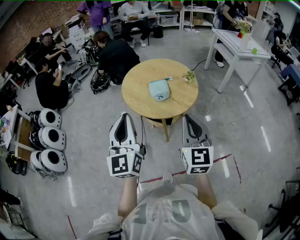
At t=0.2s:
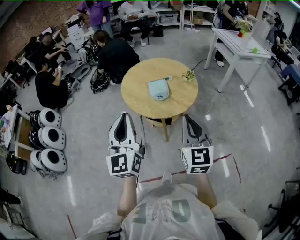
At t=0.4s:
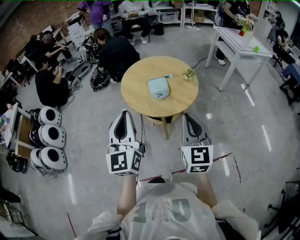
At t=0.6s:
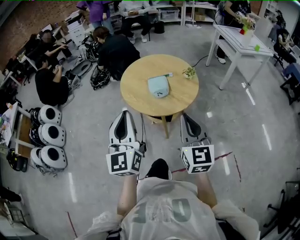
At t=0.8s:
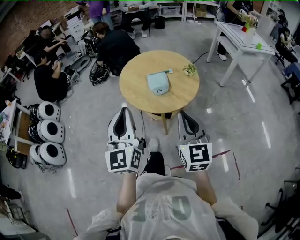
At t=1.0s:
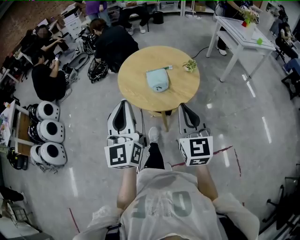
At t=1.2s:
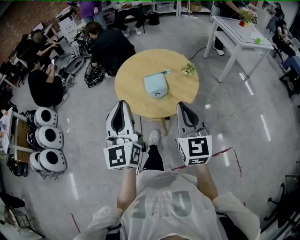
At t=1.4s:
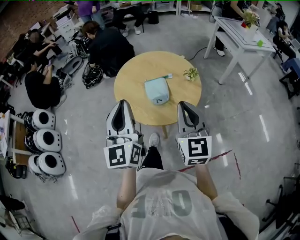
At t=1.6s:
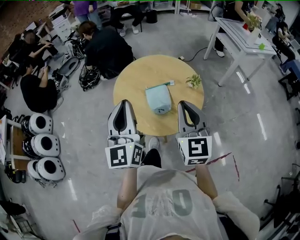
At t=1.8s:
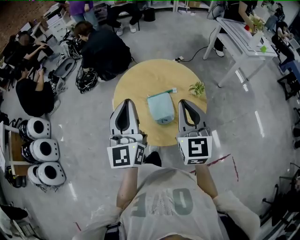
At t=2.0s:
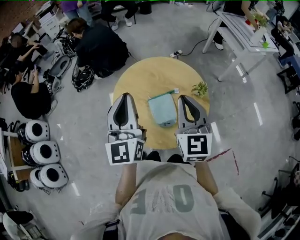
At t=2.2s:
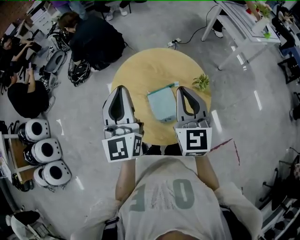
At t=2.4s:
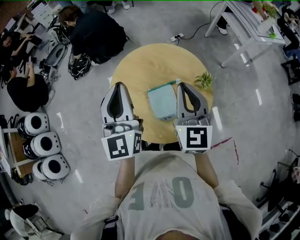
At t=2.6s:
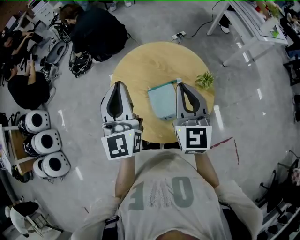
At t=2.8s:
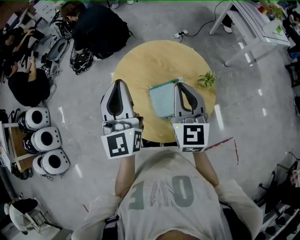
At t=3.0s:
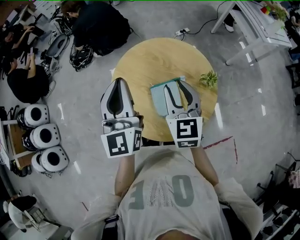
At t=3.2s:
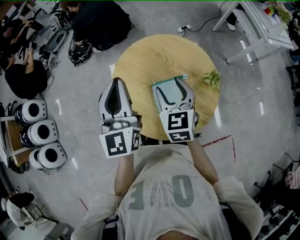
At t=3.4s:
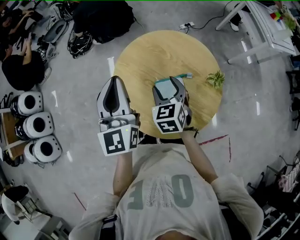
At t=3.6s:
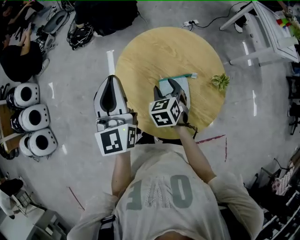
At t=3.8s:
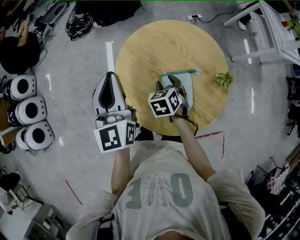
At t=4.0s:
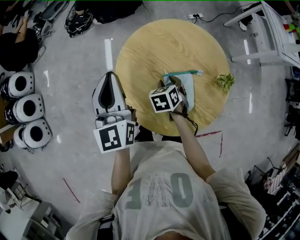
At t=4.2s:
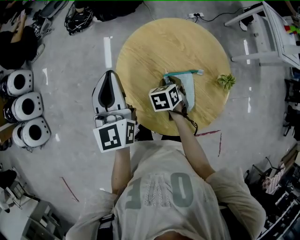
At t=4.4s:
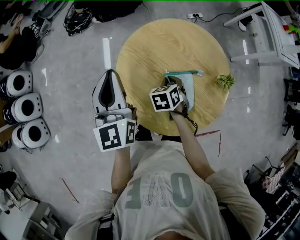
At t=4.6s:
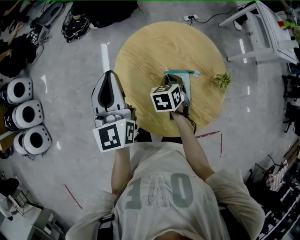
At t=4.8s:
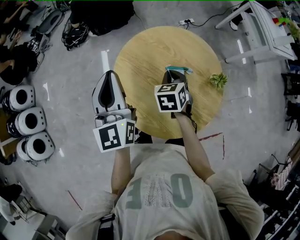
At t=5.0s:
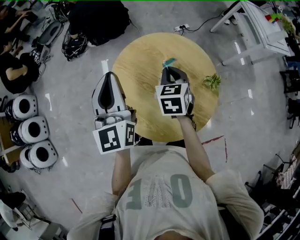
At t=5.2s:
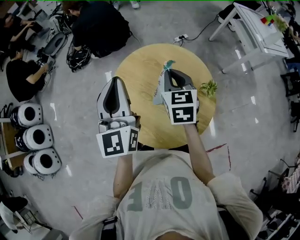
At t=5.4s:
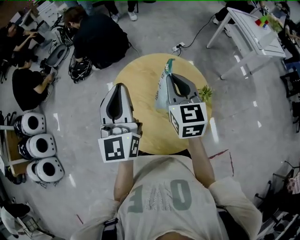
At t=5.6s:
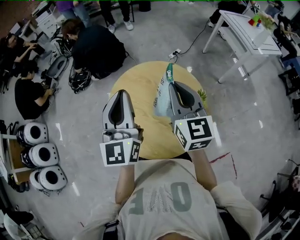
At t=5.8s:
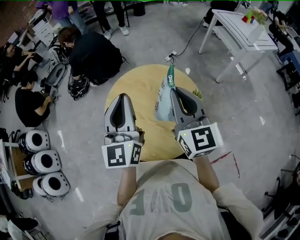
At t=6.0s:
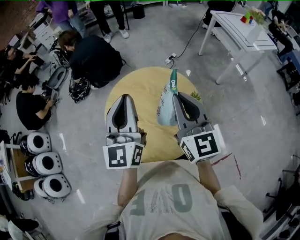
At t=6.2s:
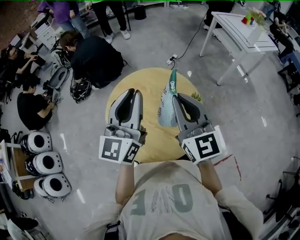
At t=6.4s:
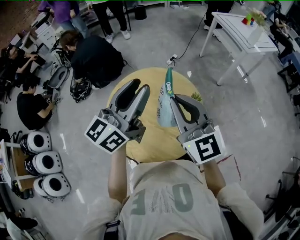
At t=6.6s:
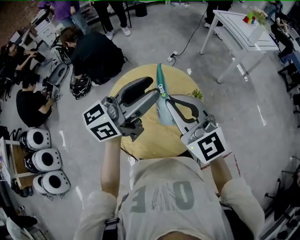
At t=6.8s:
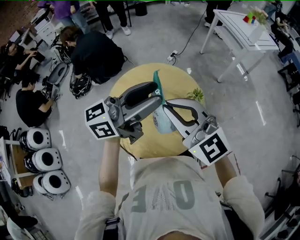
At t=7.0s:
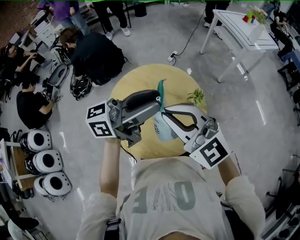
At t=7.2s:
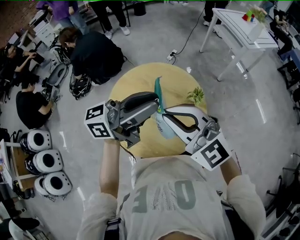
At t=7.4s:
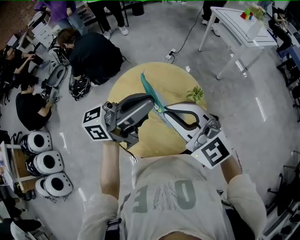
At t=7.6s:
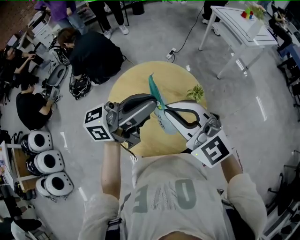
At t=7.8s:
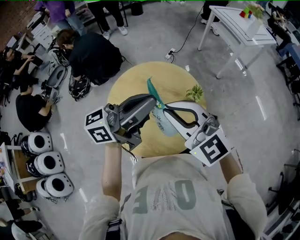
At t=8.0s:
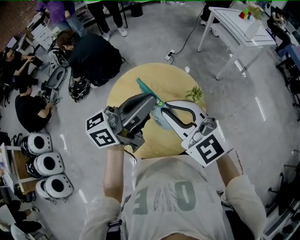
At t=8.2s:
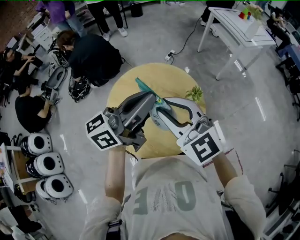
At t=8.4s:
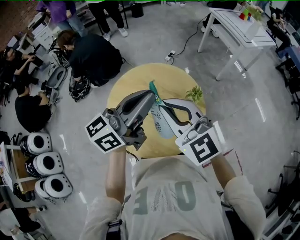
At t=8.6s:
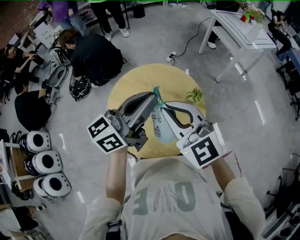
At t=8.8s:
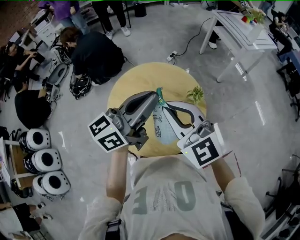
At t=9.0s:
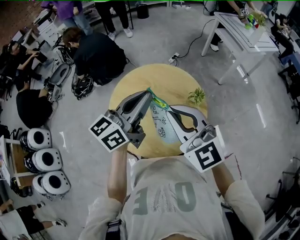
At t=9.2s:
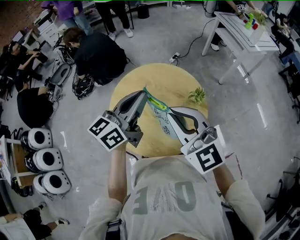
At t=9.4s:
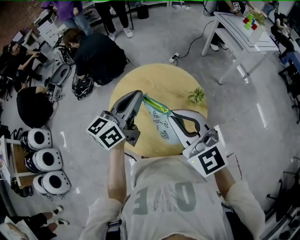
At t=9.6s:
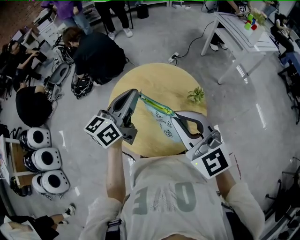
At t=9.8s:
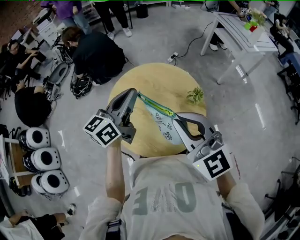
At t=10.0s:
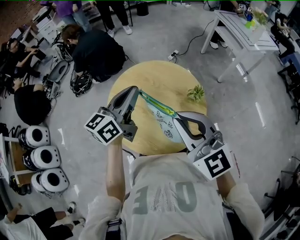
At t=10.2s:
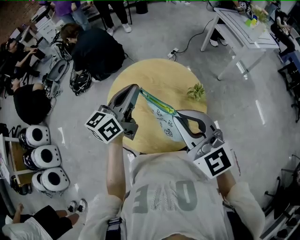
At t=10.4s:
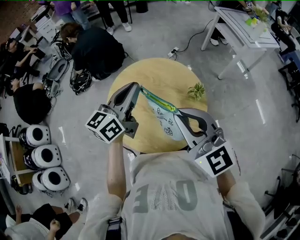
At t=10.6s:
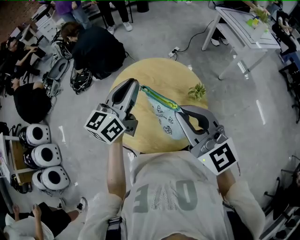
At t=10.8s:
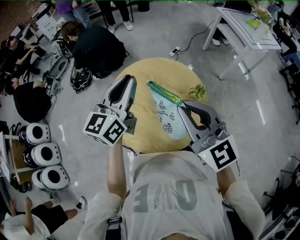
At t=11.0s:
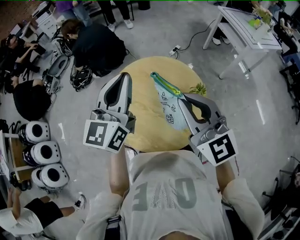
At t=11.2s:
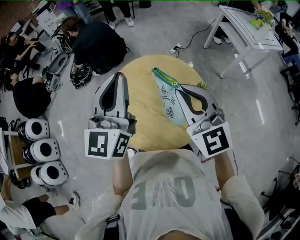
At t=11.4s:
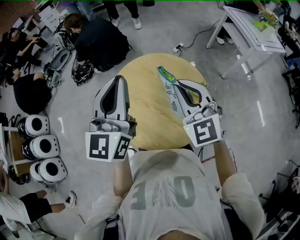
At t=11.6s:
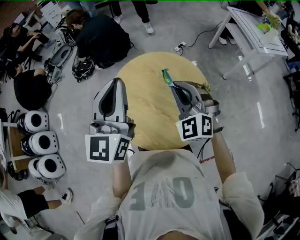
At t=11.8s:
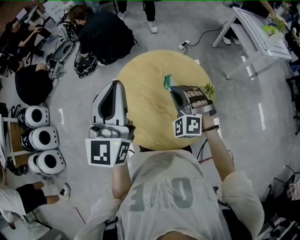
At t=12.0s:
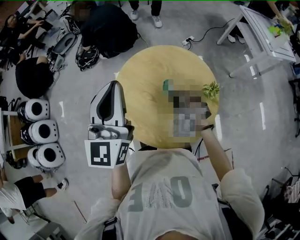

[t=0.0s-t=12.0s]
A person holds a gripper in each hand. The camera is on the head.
t=0.0s to t=1.6s: Both grippers travel together forward, about 25 cm.
t=1.6s to t=3.0s: The grippers both shift forward by roughly 20 cm. The right gripper opens up.
t=3.0s to t=4.4s: The left gripper travels to the left and downward by about 15 cm. The right gripper moves downward, approximately 25 cm, tilts its fingers approximately 40 degrees downward, and opens, then closes again.
t=4.4s to t=6.0s: The right gripper is displaced upward and to the right by approximately 40 cm, and tilts its fingers approximately 60 degrees upward. The left gripper is displaced to the right and upward by some 25 cm, and turns by approximately 30 degrees.
t=6.0s to t=7.6s: The left gripper moves to the right, about 5 cm, turns by about 80 degrees, and opens, then closes once more, while the right gripper is displaced backward by some 5 cm, and turns by roughly 40 degrees.
t=7.6s to t=9.0s: The left gripper changes place by some 5 cm, and swivels approximately 30 degrees.
t=9.0s to t=10.4s: The left gripper moves roughly 5 cm.
t=10.4s to t=12.0s: The right gripper travels downward and forward by about 25 cm, and angles its fingers downward, by about 40 degrees; the left gripper is displaced to the left and upward by roughly 10 cm, and changes its angle by about 40 degrees.

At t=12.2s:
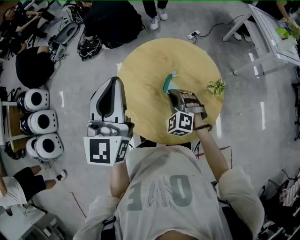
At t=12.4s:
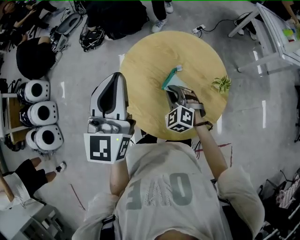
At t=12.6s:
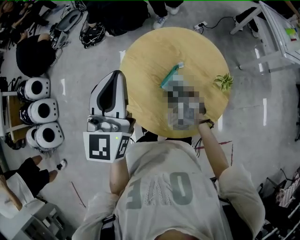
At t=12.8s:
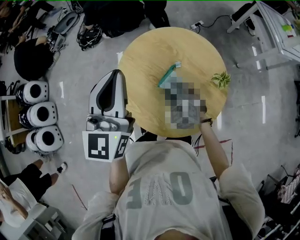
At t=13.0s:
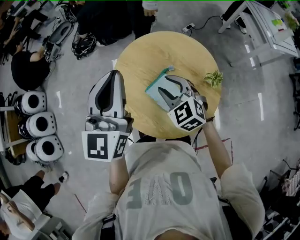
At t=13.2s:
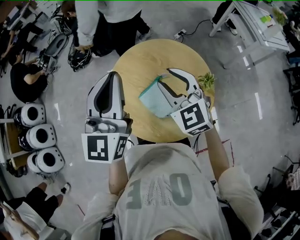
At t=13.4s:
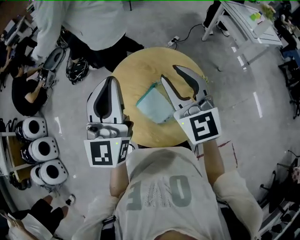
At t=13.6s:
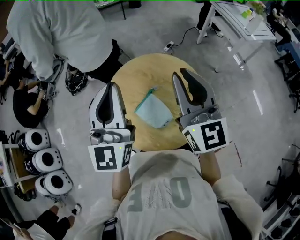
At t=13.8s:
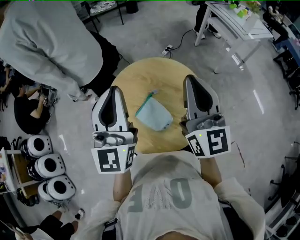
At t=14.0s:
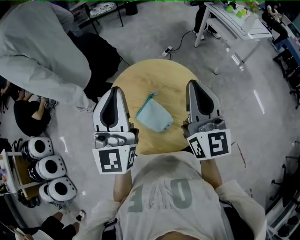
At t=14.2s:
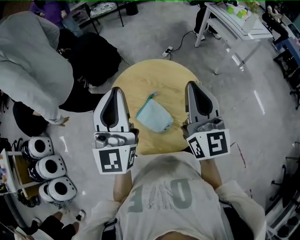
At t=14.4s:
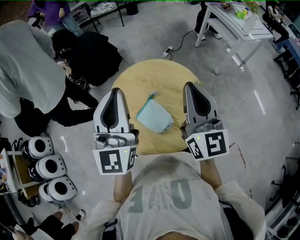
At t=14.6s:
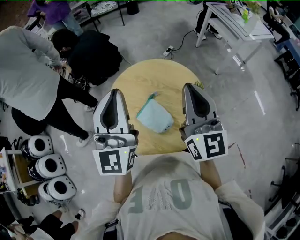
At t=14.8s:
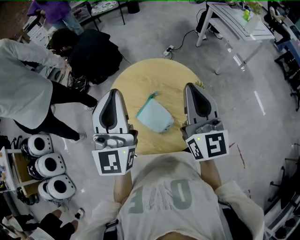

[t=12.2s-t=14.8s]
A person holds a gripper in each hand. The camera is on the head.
t=12.2s to t=13.4s: The left gripper shifts by some 5 cm. The right gripper goes about 30 cm upward, angles its fingers upward, by roughly 40 degrees, and opens up.
t=13.4s to t=14.8s: The right gripper goes roughly 10 cm to the right, rotates approximately 30 degrees, and closes up.

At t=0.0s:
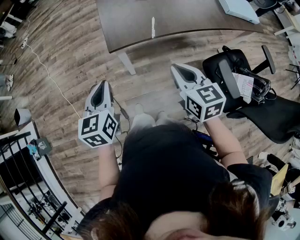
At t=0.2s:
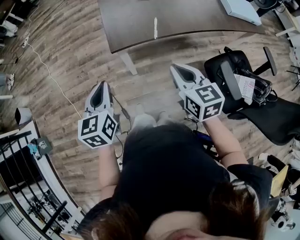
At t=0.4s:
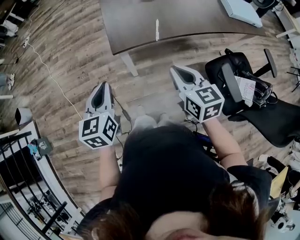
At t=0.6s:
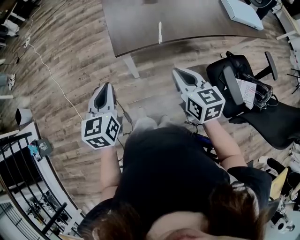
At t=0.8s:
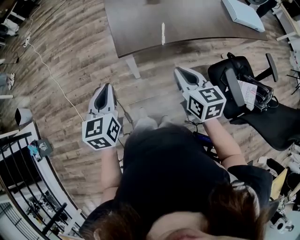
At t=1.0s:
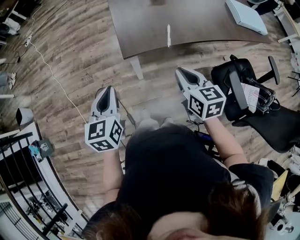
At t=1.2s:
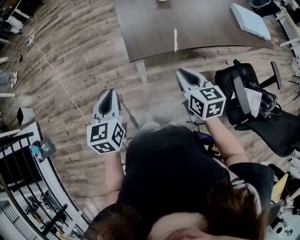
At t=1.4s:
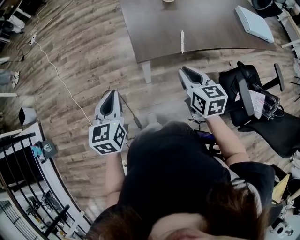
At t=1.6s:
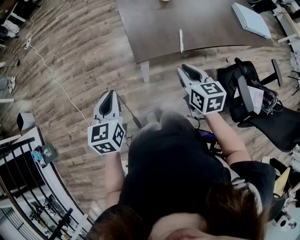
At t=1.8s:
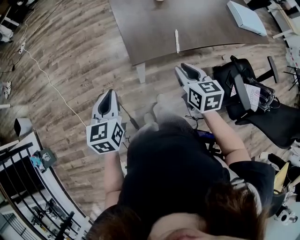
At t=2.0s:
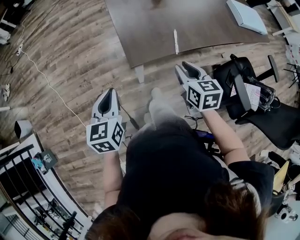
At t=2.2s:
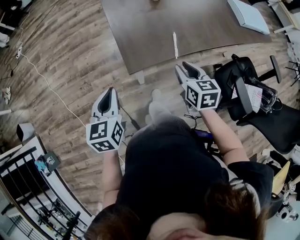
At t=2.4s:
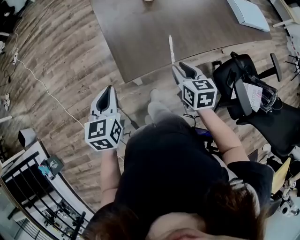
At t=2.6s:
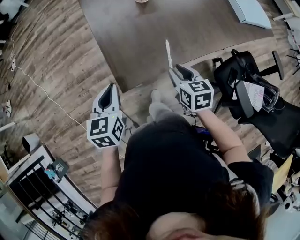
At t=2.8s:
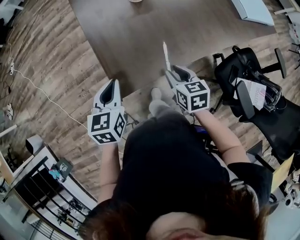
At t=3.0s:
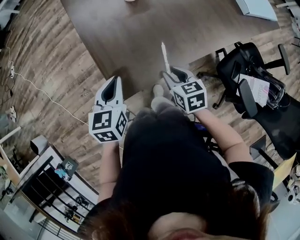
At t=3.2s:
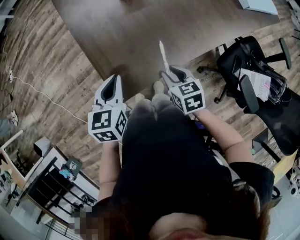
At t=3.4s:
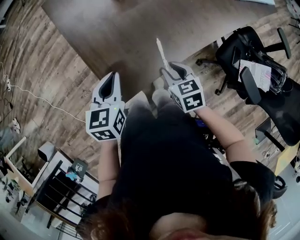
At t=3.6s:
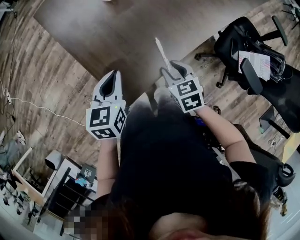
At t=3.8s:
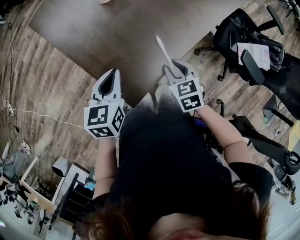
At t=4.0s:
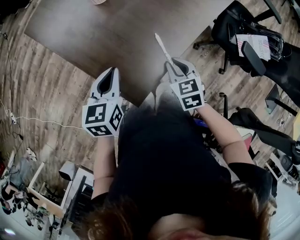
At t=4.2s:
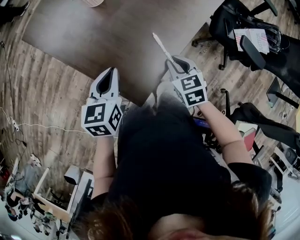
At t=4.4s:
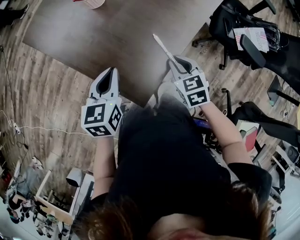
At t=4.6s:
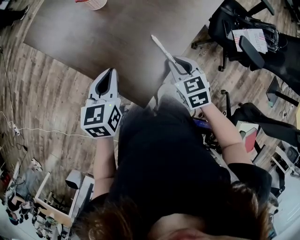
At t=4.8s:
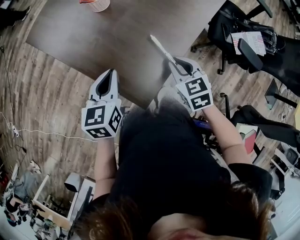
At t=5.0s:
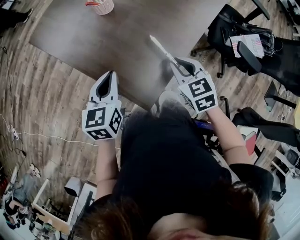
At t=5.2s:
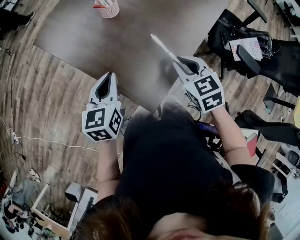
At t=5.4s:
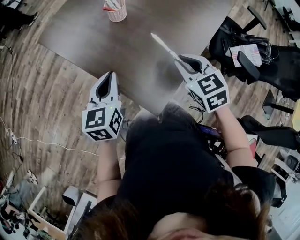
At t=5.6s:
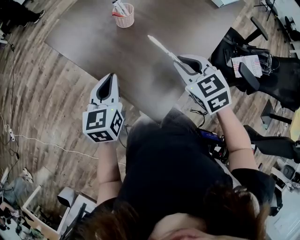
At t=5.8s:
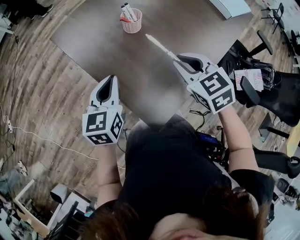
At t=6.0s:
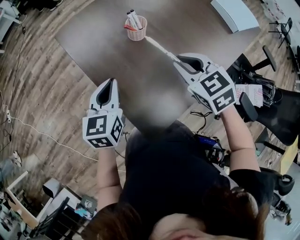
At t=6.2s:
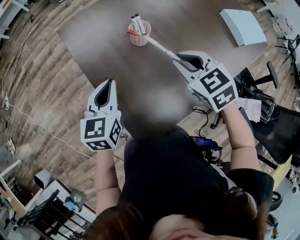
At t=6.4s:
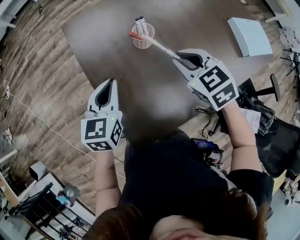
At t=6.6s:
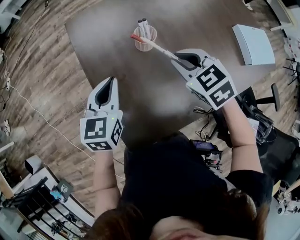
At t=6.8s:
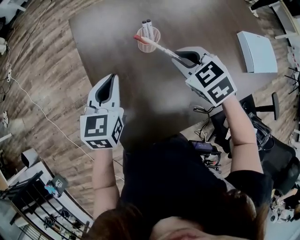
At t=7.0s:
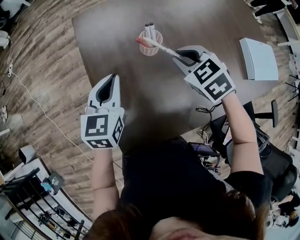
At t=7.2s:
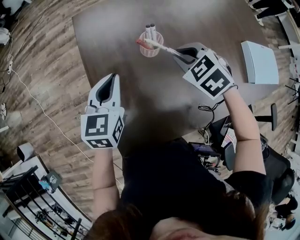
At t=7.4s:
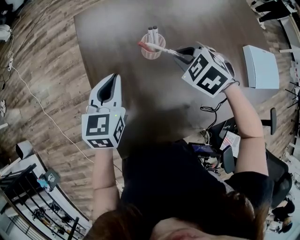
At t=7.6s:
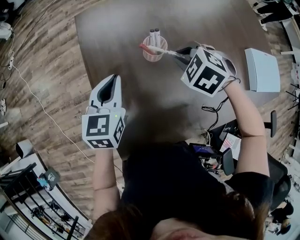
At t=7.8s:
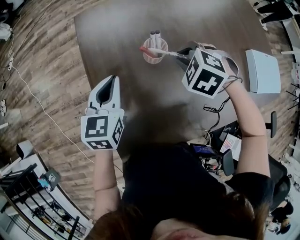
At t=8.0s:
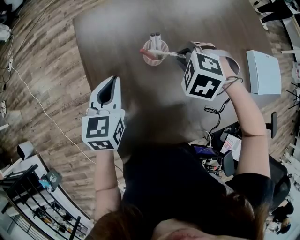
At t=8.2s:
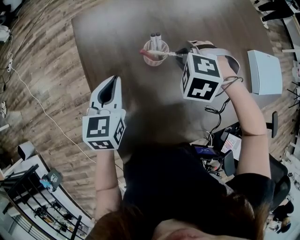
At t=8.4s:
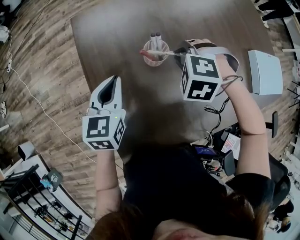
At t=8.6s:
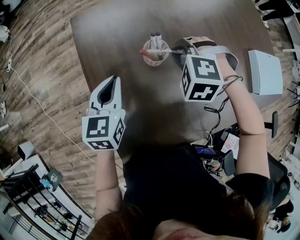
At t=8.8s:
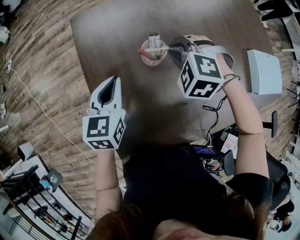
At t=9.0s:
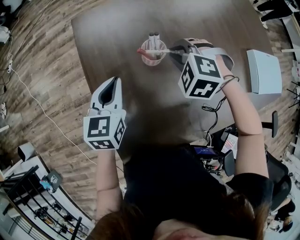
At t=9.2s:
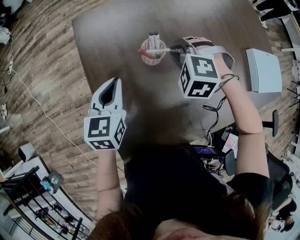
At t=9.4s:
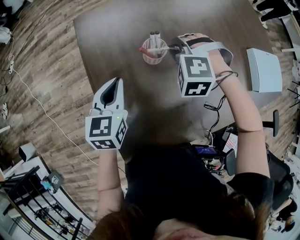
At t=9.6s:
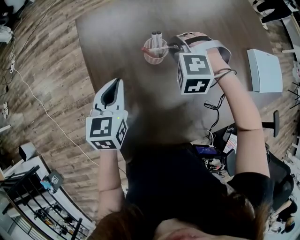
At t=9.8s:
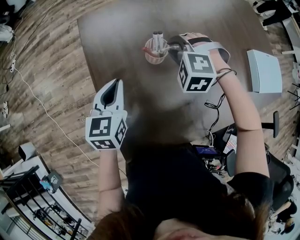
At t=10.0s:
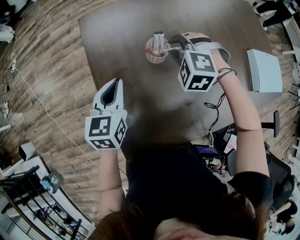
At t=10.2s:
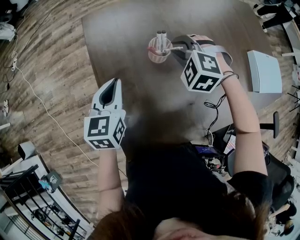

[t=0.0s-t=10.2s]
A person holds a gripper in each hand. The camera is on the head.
t=0.0s to t=1.4s: The right gripper is displaced forward and to the left by some 10 cm; the left gripper goes roughly 10 cm to the left and forward.
t=1.4s to t=3.0s: The left gripper heads forward and to the right, covering some 30 cm, and turns by roughly 20 degrees; the right gripper goes about 25 cm forward, downward and to the right.
t=3.0s to t=4.4s: The right gripper swivels some 20 degrees; the left gripper shifts by about 10 cm, and rotates some 30 degrees.
t=4.4s to t=5.8s: The left gripper moves to the left, upward and forward, some 10 cm. Meanwhile the right gripper shifts some 20 cm upward, forward and to the left, and changes its angle by roughly 20 degrees.
t=5.8s to t=7.2s: The right gripper ends up approximately 20 cm from where it was, and swivels roughly 40 degrees; the left gripper changes place by about 10 cm, and swivels some 20 degrees.
t=7.2s to t=8.8s: The left gripper changes place by about 5 cm. Meanwhile the right gripper travels forward by roughly 5 cm, and rotates approximately 30 degrees.
t=8.8s to t=10.2s: There are only small adjustments of the grippers.
